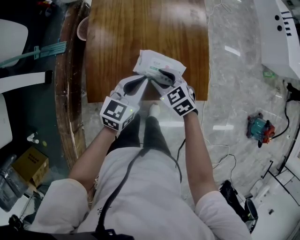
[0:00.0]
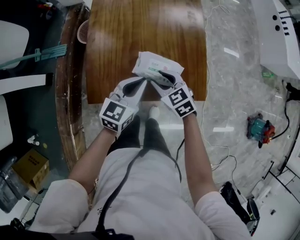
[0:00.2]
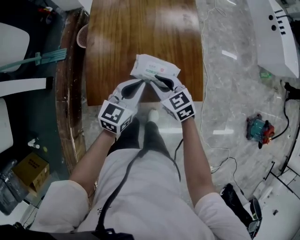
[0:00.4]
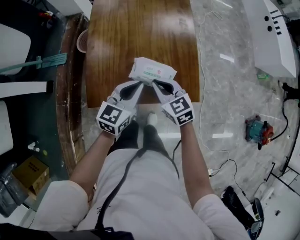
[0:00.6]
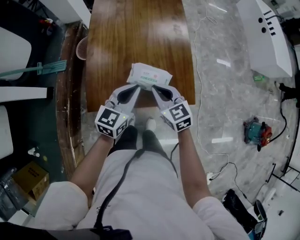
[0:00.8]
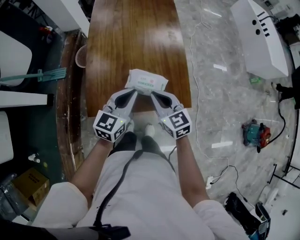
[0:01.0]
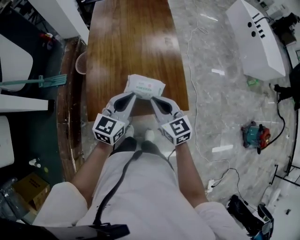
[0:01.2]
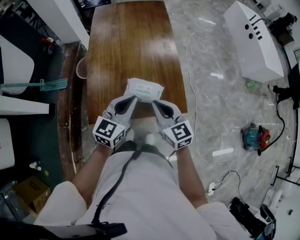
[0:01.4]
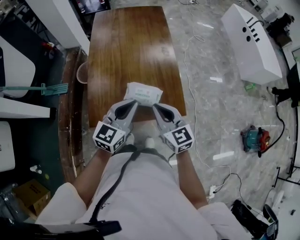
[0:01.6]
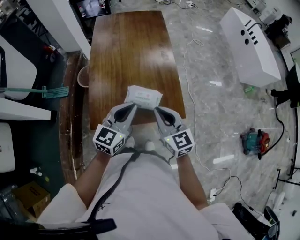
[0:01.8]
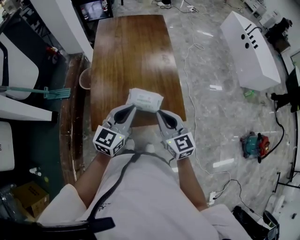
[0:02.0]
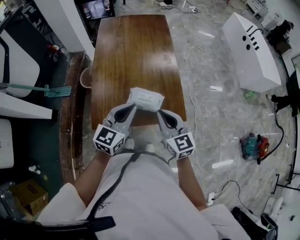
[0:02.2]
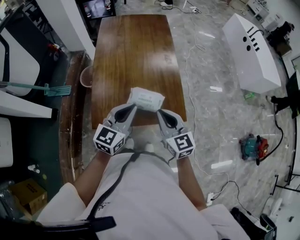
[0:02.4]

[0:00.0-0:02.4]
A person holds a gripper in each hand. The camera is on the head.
0:00.0 to 0:01.2: Both grippers travel together upward, some 15 cm. The right gripper rotates approximately 30 degrees, and closes.
0:01.2 to 0:02.4: The grippers both shift upward by approximately 5 cm.

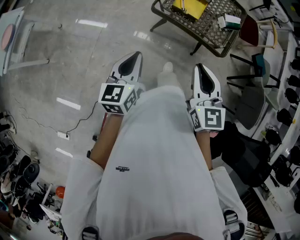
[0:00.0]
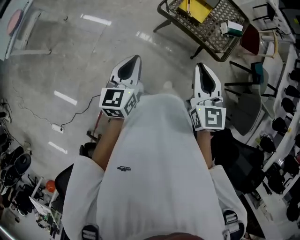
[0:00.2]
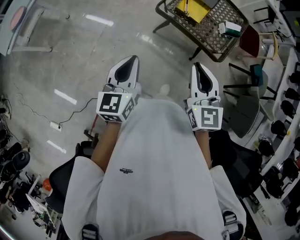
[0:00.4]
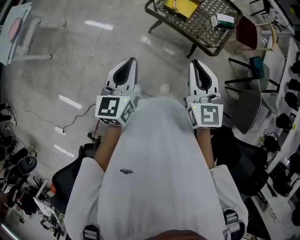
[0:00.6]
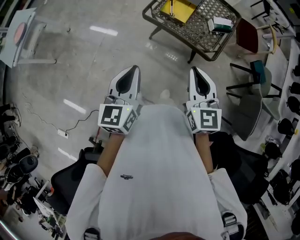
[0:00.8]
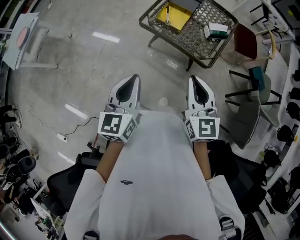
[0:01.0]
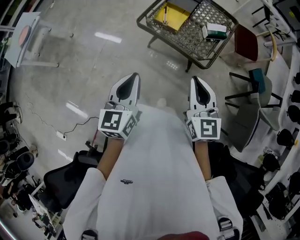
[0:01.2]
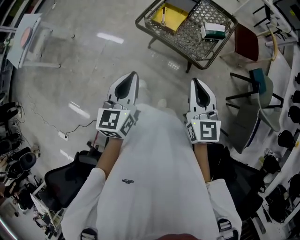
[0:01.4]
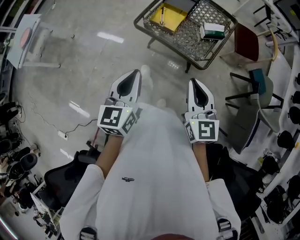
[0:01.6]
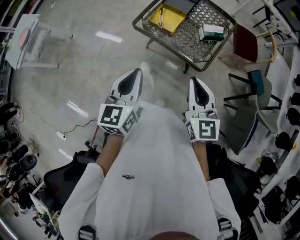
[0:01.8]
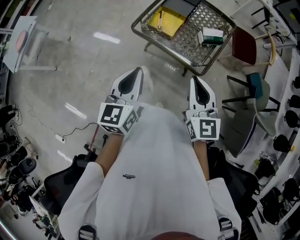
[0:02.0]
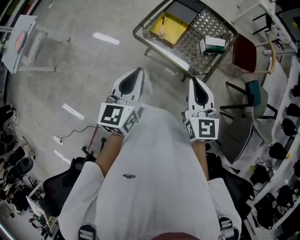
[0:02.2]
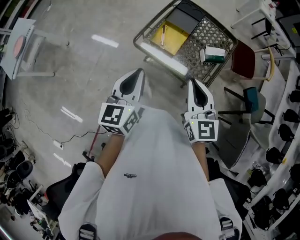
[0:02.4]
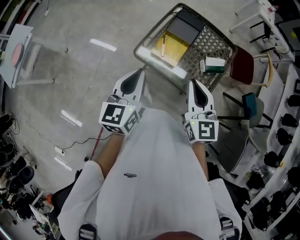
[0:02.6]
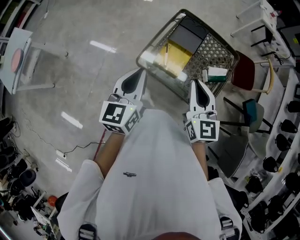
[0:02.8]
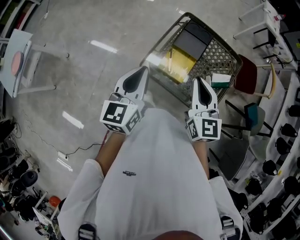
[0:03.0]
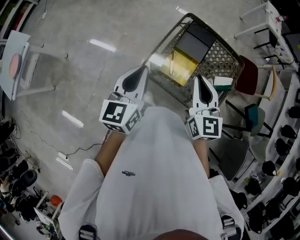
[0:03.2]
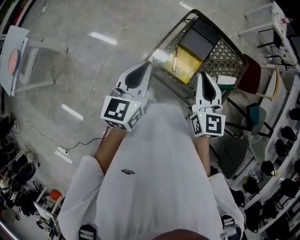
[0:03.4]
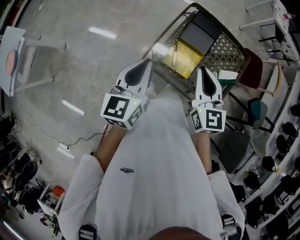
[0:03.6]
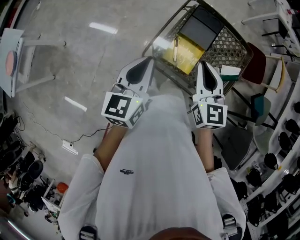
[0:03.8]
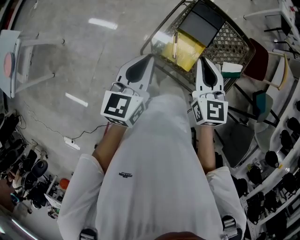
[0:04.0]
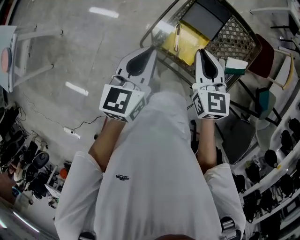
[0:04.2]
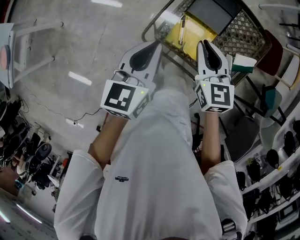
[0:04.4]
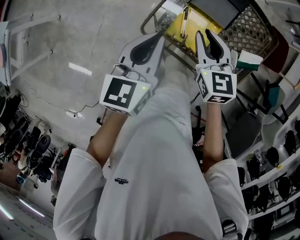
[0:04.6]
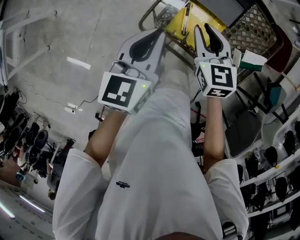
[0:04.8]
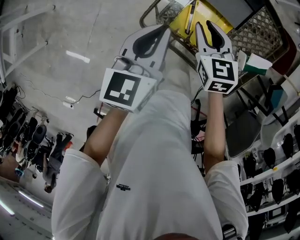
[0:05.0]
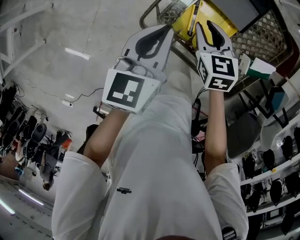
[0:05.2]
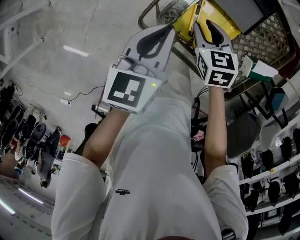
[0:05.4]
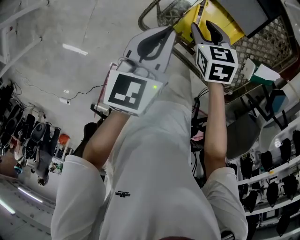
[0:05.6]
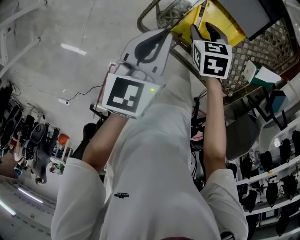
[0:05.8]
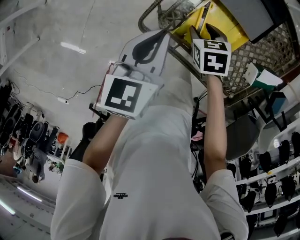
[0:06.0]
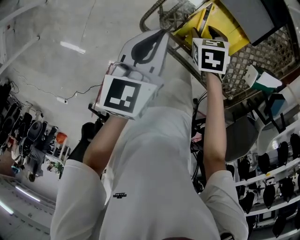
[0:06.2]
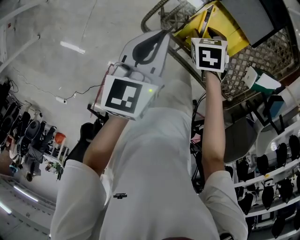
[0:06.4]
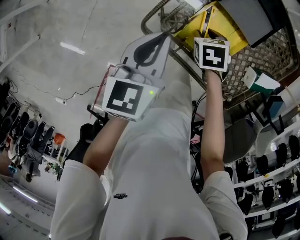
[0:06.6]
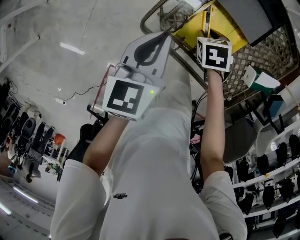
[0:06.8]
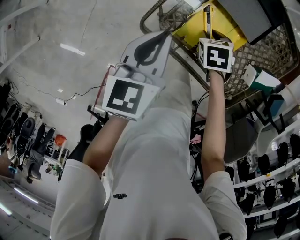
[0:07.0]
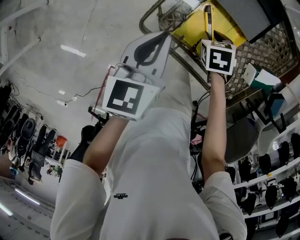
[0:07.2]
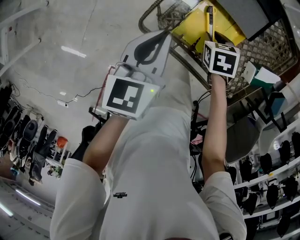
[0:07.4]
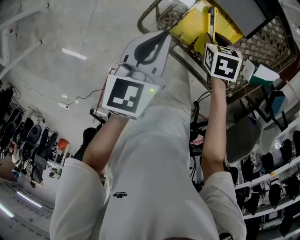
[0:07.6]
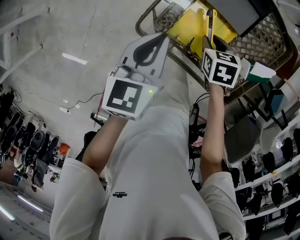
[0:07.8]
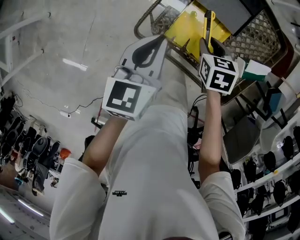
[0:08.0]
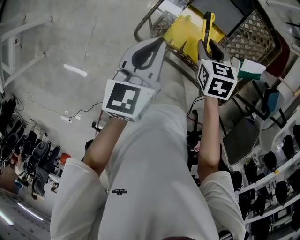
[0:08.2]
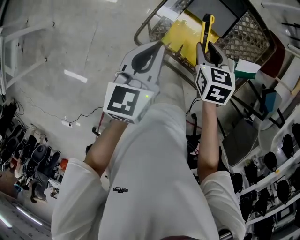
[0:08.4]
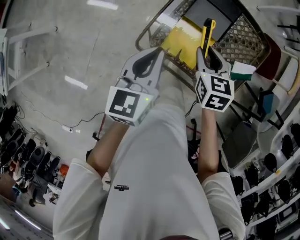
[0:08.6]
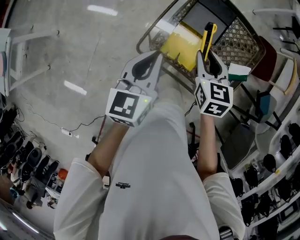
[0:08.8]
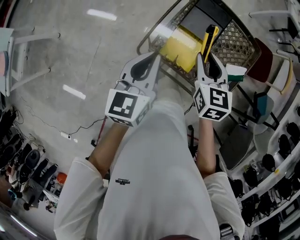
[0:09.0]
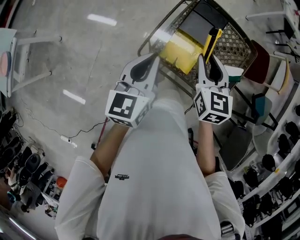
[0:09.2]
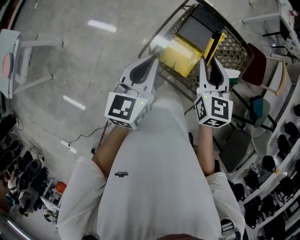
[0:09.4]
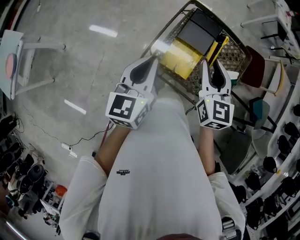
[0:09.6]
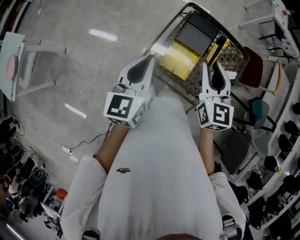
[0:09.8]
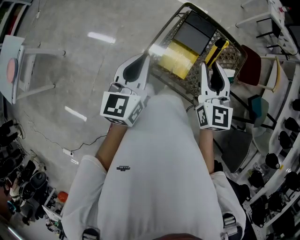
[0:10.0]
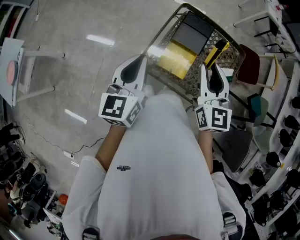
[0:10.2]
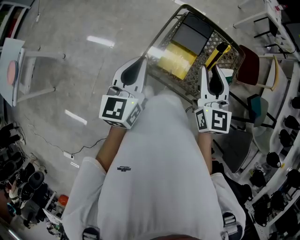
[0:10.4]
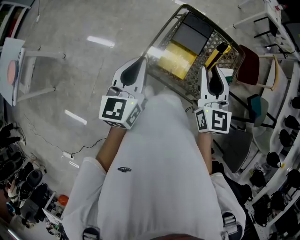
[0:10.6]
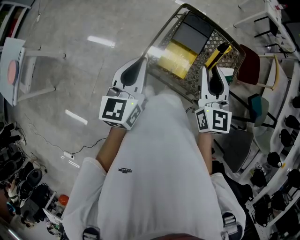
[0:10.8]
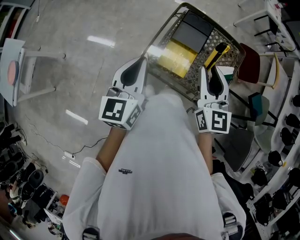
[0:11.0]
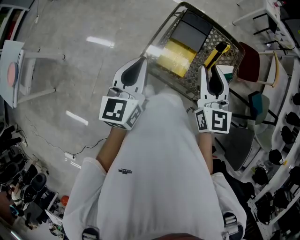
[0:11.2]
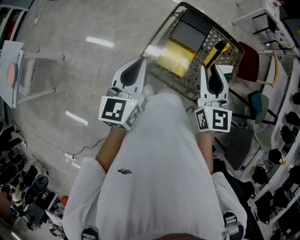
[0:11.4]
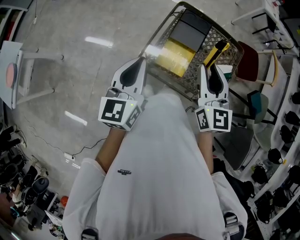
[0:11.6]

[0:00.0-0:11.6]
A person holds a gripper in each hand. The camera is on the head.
0:00.0 to 0:01.4: The two grippers go approximately 20 cm to the right.
0:01.4 to 0:02.8: The two grippers go about 30 cm forward.
0:02.8 to 0:04.4: Both grippers move forward and downward, some 20 cm.
0:04.4 to 0:05.8: The right gripper is displaced downward by some 30 cm, angles its fingers downward, by roughly 40 degrees, and opens; the left gripper moves downward, roughly 15 cm.
0:05.8 to 0:07.2: The right gripper changes place by about 5 cm.
0:07.2 to 0:08.8: The left gripper shifts approximately 15 cm upward. Meanwhile the right gripper heads upward, covering approximately 25 cm, and points its fingers approximately 40 degrees further upward.
0:08.8 to 0:10.2: The left gripper moves upward, roughly 10 cm, while the right gripper moves upward, roughly 20 cm, and points its fingers some 30 degrees further upward.
0:10.2 to 0:11.6: The grippers stay close to where they were, moving slightly.

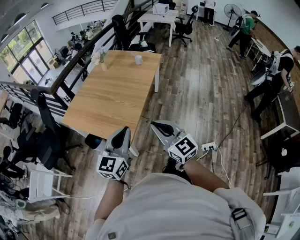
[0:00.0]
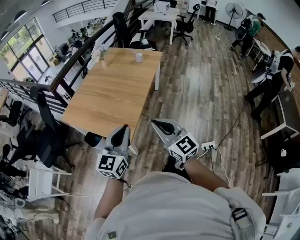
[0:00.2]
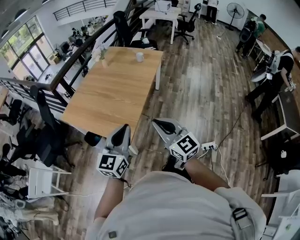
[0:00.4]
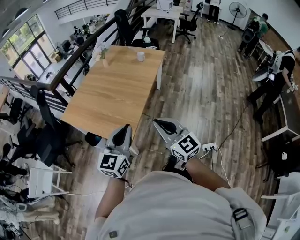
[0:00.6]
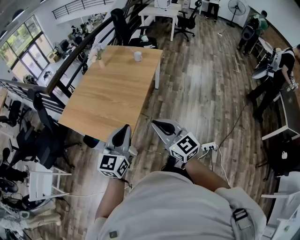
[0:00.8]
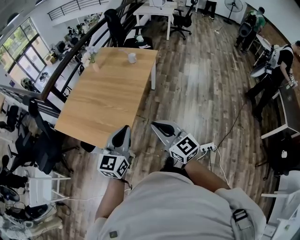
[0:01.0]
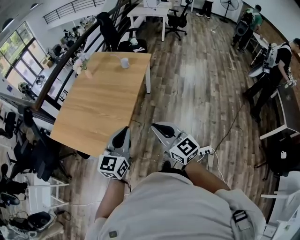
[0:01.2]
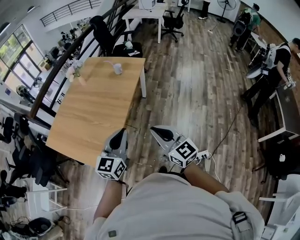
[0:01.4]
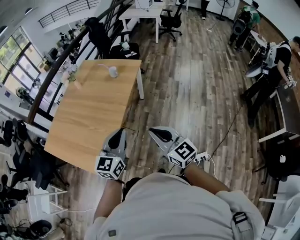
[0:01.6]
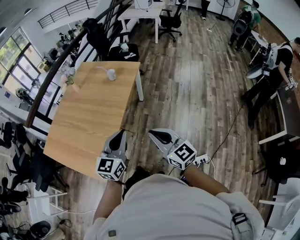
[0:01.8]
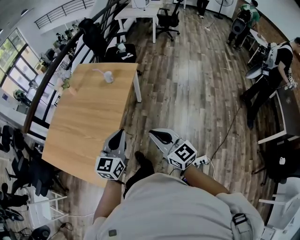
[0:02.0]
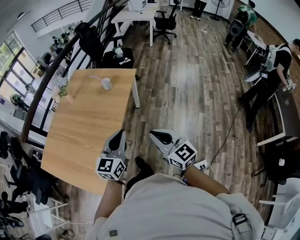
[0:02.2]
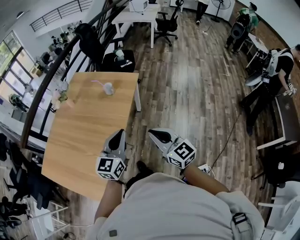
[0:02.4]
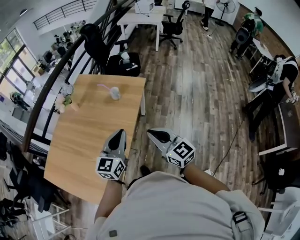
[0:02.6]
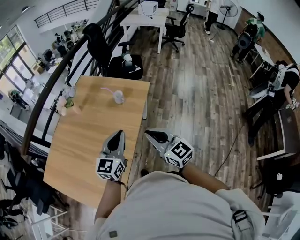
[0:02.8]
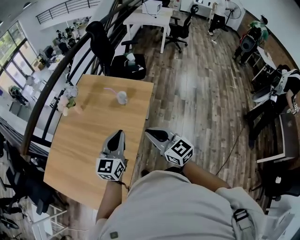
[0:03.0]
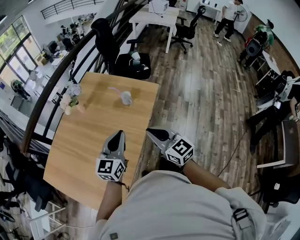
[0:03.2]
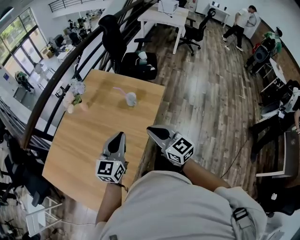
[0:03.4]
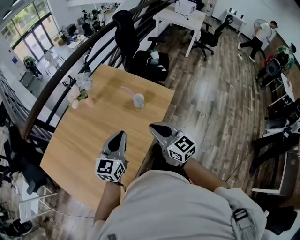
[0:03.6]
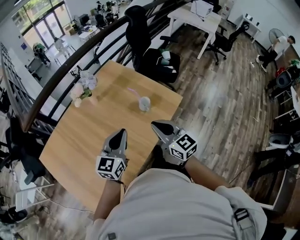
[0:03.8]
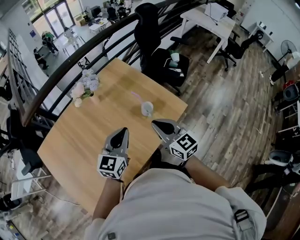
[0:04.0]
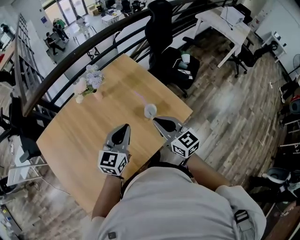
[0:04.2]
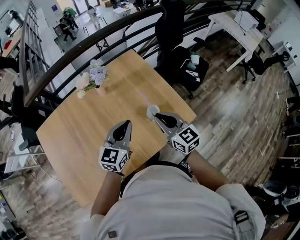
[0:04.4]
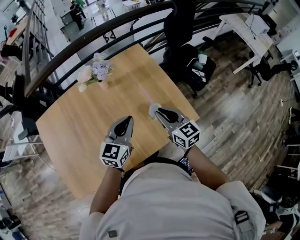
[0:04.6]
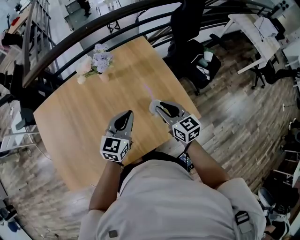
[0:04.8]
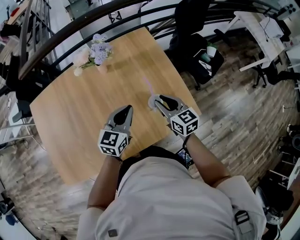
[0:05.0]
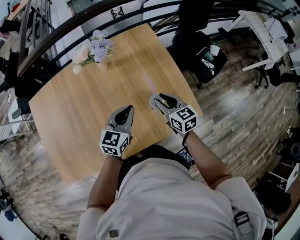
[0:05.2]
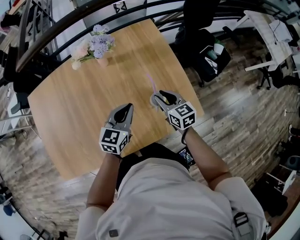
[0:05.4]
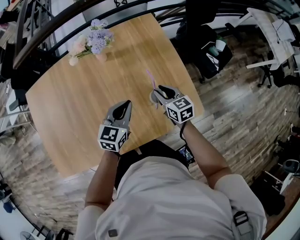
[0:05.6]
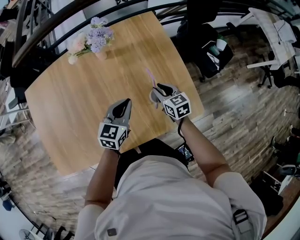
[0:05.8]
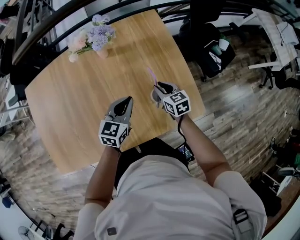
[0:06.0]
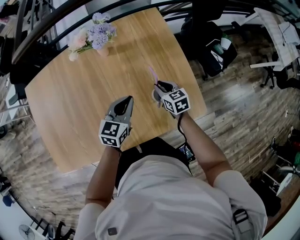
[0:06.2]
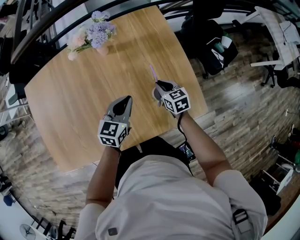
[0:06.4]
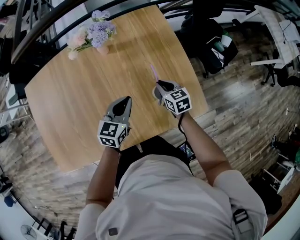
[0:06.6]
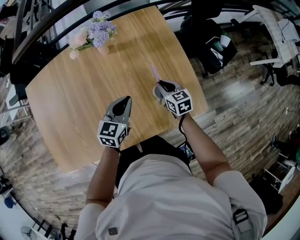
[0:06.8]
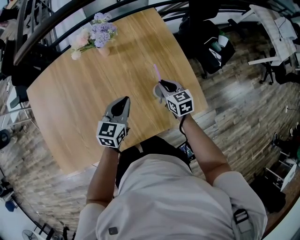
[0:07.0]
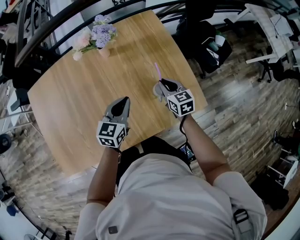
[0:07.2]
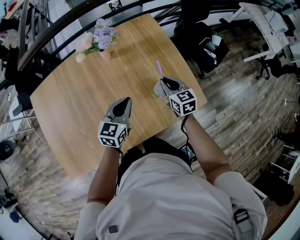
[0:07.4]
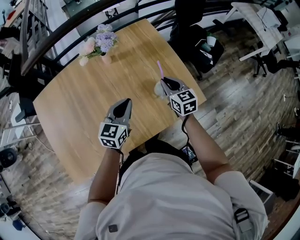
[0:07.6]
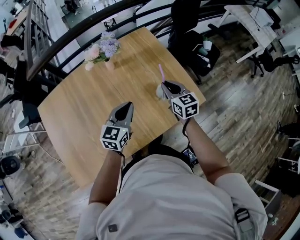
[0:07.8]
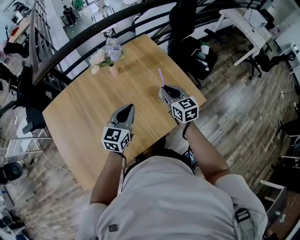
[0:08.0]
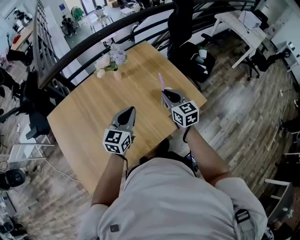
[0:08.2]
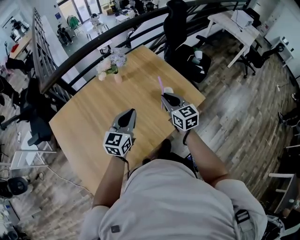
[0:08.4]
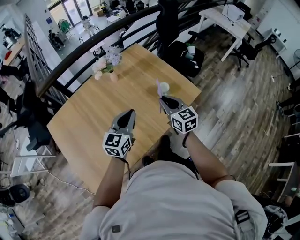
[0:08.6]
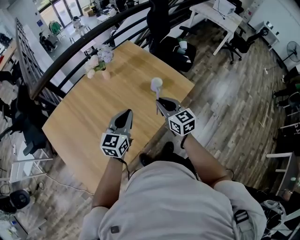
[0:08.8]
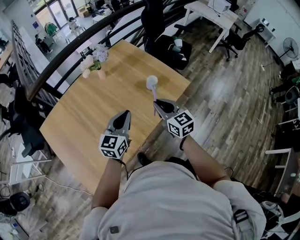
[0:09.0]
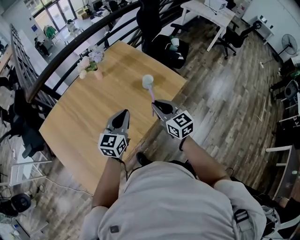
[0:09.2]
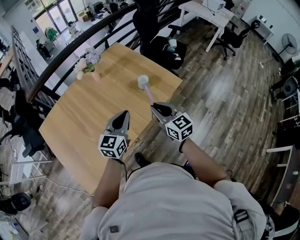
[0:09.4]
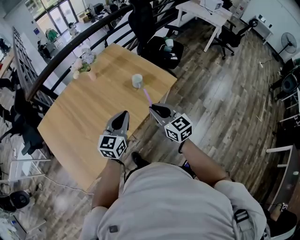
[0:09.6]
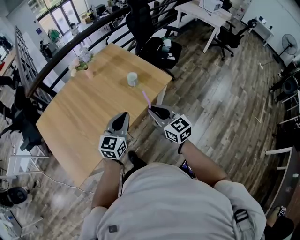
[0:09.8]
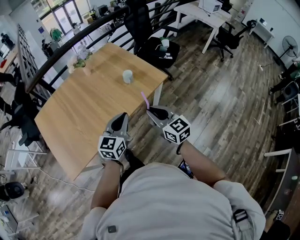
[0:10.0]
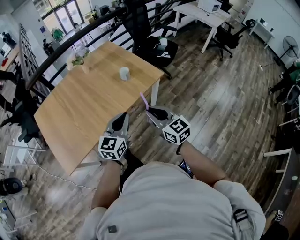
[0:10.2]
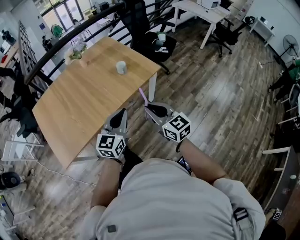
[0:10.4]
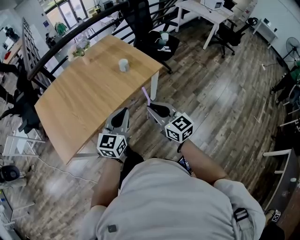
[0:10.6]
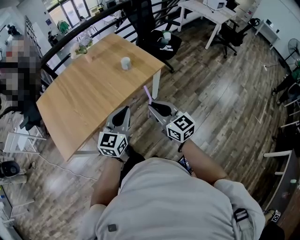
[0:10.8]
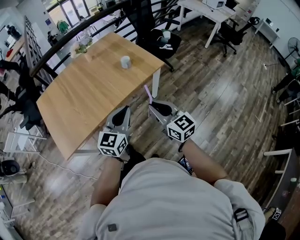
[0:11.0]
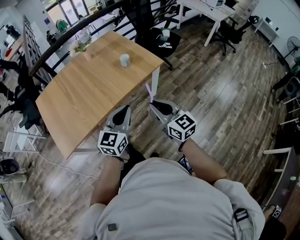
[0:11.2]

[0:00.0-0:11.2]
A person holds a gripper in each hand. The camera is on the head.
0:00.0 to 0:01.6: The right gripper moves to the right and forward, approximately 30 cm. Meanwhile the left gripper heads forward and to the right, covering some 35 cm.
0:01.6 to 0:03.2: The grippers both shift forward by about 40 cm.
0:03.2 to 0:04.8: The right gripper changes place by some 40 cm, swivels approximately 40 degrees, and opens, while the left gripper moves some 30 cm, and rotates roughly 40 degrees.
0:04.8 to 0:06.4: The left gripper moves downward, about 10 cm. The right gripper heads downward and forward, covering some 20 cm, and swivels about 20 degrees.
0:06.4 to 0:08.0: The right gripper moves upward and backward, roughly 25 cm, and rotates roughly 30 degrees, while the left gripper moves upward, backward and to the left, approximately 15 cm.
0:08.0 to 0:09.6: The left gripper travels backward and to the right by roughly 20 cm; the right gripper heads backward, covering roughly 30 cm.
0:09.6 to 0:11.2: Both grippers move backward and to the right, approximately 25 cm.
